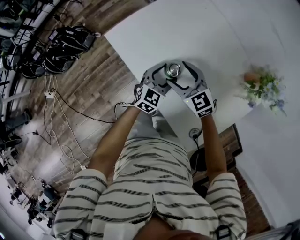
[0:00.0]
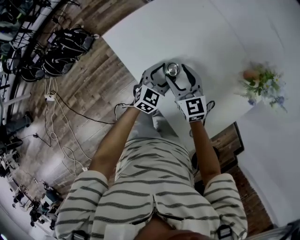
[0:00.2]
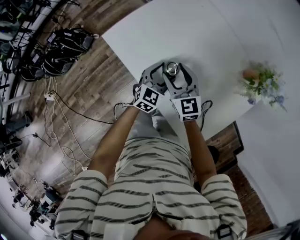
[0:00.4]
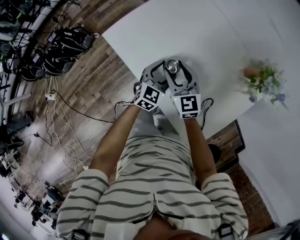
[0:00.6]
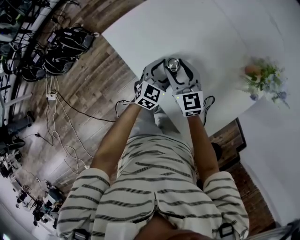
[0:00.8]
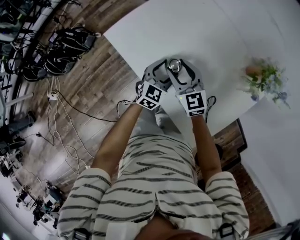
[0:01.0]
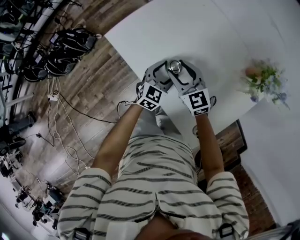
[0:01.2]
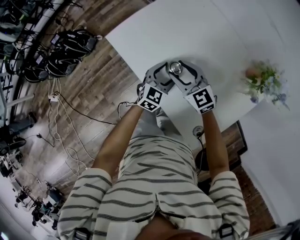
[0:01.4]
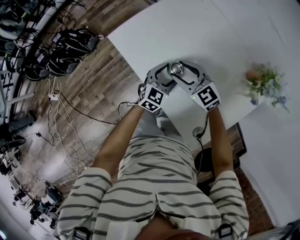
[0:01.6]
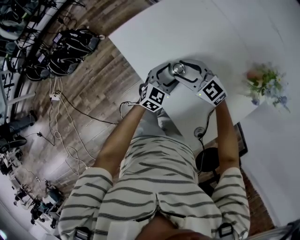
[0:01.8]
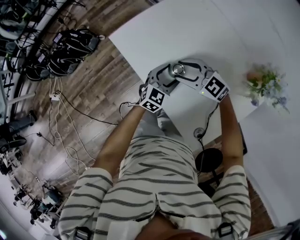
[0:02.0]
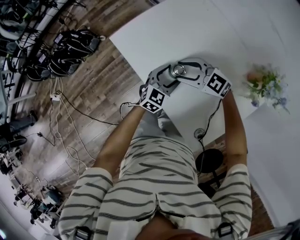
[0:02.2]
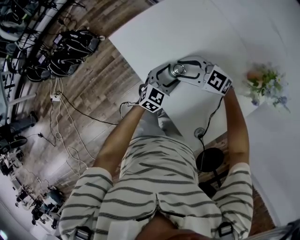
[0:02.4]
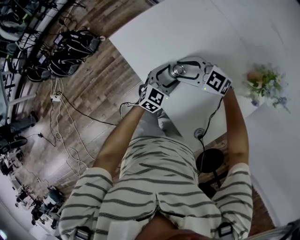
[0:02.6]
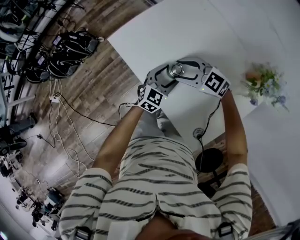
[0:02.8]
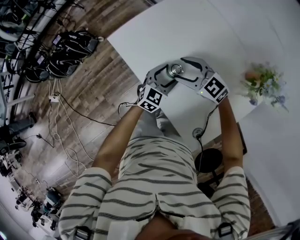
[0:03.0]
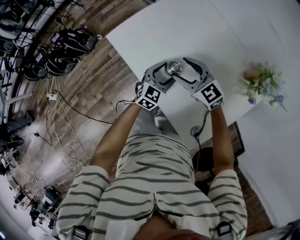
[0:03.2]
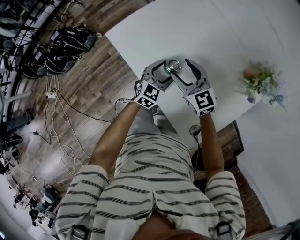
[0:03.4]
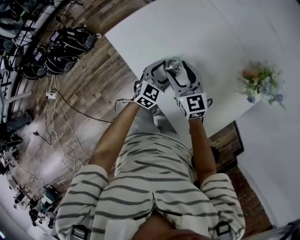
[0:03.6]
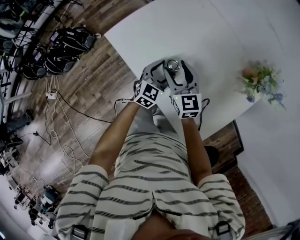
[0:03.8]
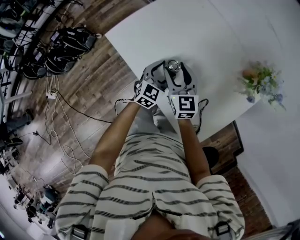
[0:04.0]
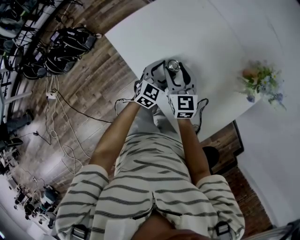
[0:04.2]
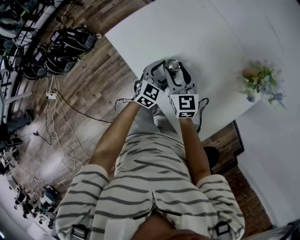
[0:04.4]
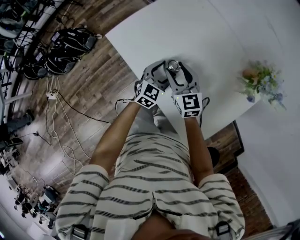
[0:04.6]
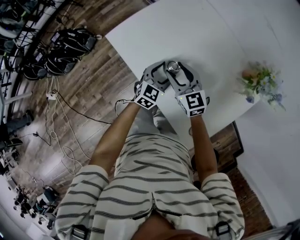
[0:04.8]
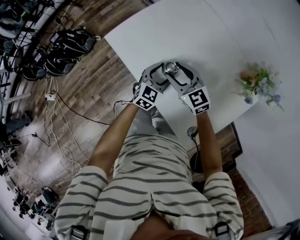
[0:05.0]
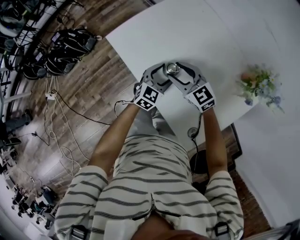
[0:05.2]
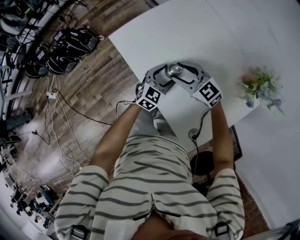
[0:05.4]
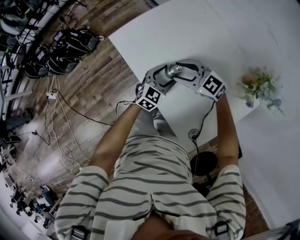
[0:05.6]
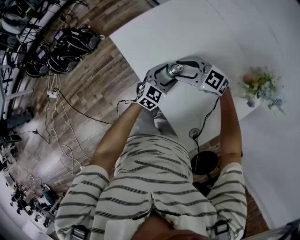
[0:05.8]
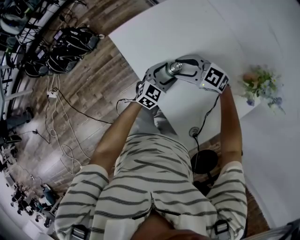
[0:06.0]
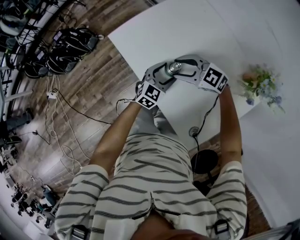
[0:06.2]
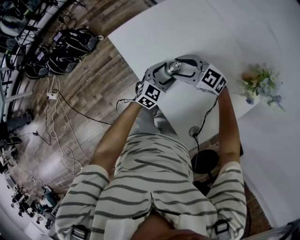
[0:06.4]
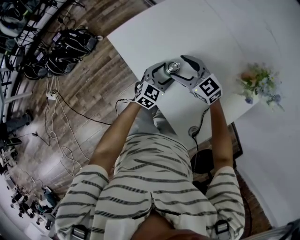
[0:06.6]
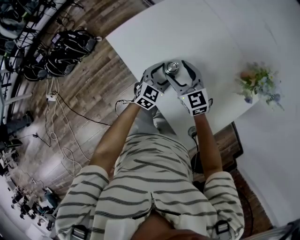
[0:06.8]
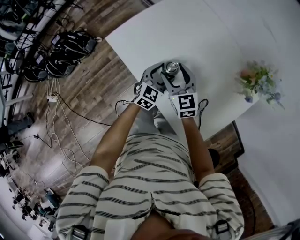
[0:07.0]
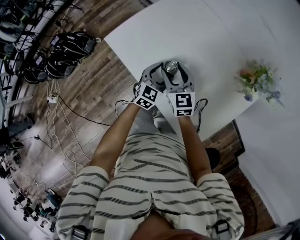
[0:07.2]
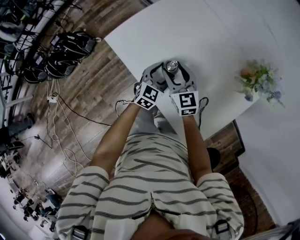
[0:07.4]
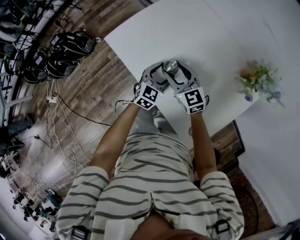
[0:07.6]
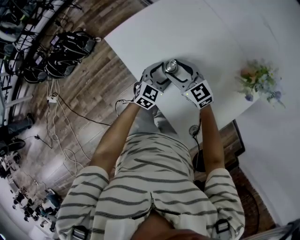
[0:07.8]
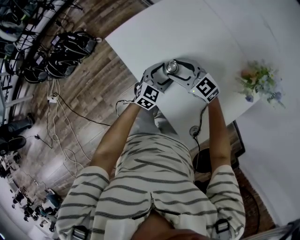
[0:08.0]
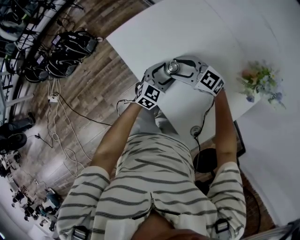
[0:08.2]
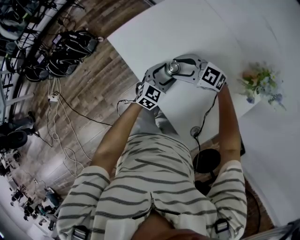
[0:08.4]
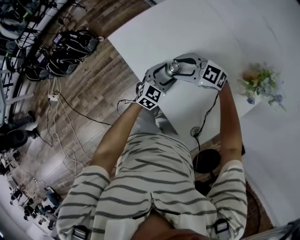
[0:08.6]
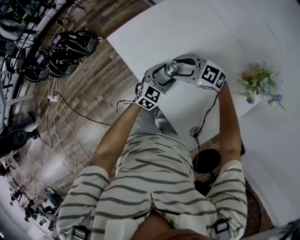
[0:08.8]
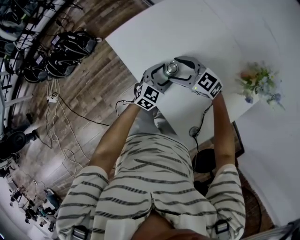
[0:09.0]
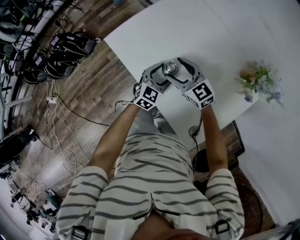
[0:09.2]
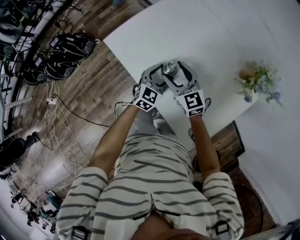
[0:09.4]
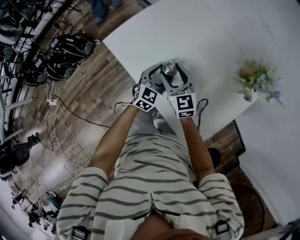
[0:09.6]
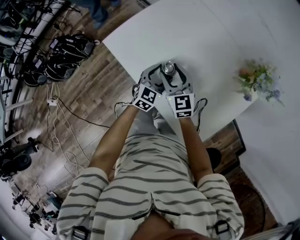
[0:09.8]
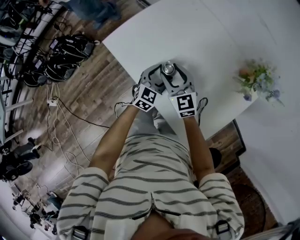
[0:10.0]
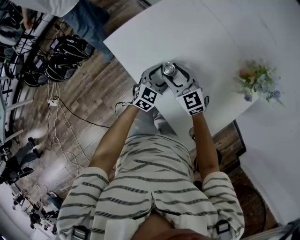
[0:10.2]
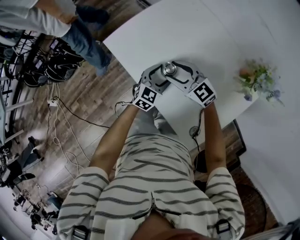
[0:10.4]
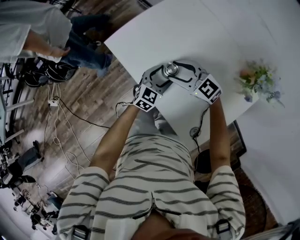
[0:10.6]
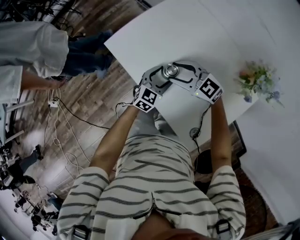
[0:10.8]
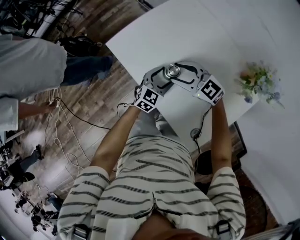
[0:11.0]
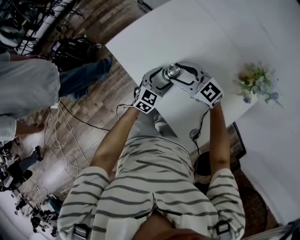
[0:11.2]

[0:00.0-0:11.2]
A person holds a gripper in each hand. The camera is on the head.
0:03.2 to 0:04.8: The right gripper changes its angle by approximately 20 degrees.
0:04.8 to 0:06.4: The right gripper changes its angle by about 40 degrees.
0:08.0 to 0:09.6: The right gripper turns by approximately 40 degrees.
0:09.6 to 0:11.2: The right gripper swivels about 40 degrees.

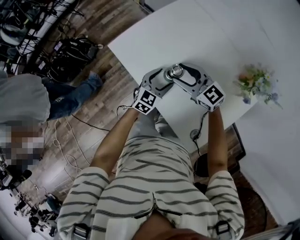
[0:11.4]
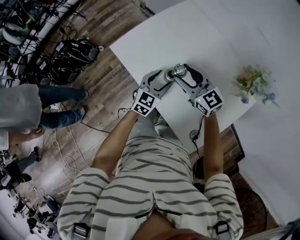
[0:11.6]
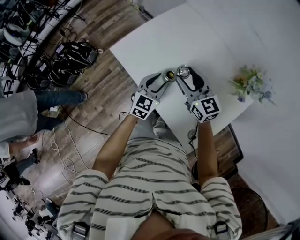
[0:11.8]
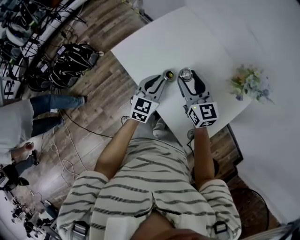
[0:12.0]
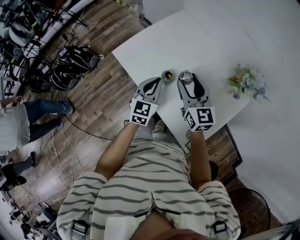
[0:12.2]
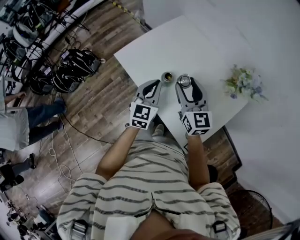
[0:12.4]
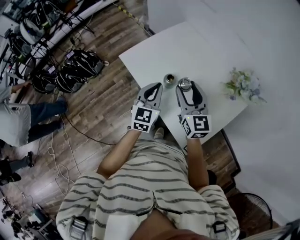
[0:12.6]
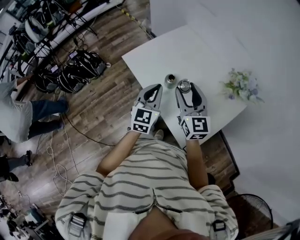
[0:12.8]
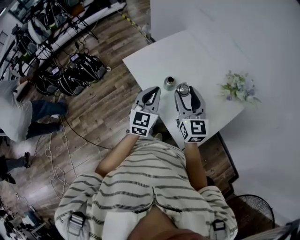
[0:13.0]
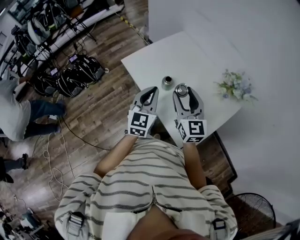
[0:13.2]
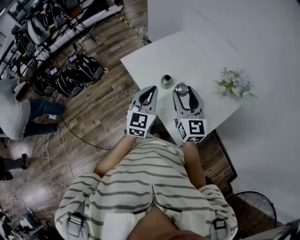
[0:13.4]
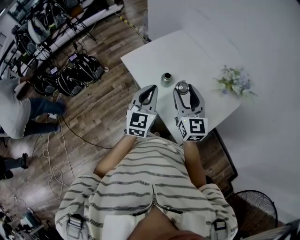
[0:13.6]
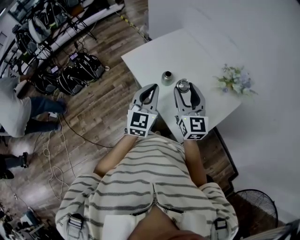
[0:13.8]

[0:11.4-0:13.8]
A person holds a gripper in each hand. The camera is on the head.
0:11.4 to 0:12.6: Both grippers move upward and backward, some 20 cm. The right gripper changes its angle by roughly 40 degrees. Meanwhile the left gripper turns by some 20 degrees, and closes its fingers.
0:12.6 to 0:13.8: The right gripper goes some 10 cm backward; the left gripper travels backward and upward by roughly 10 cm.

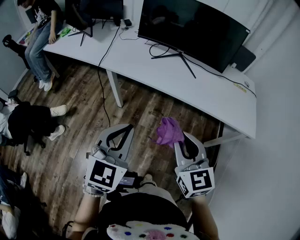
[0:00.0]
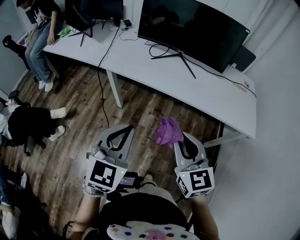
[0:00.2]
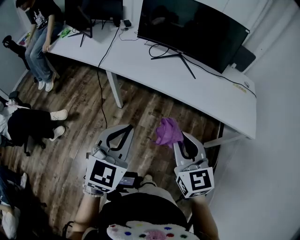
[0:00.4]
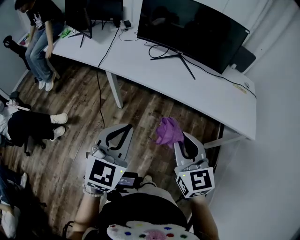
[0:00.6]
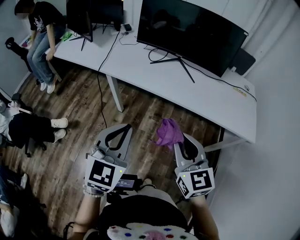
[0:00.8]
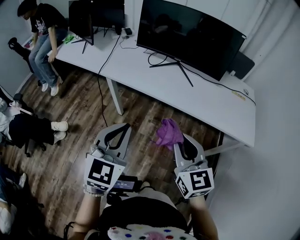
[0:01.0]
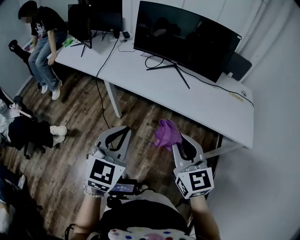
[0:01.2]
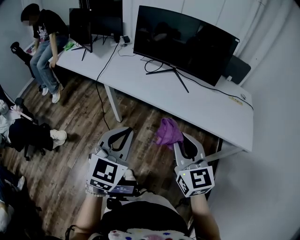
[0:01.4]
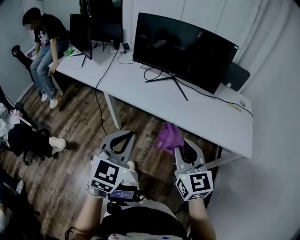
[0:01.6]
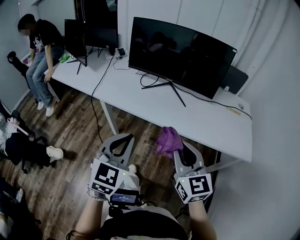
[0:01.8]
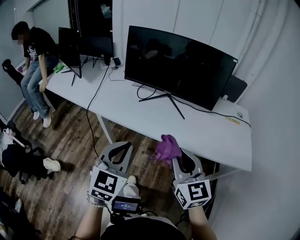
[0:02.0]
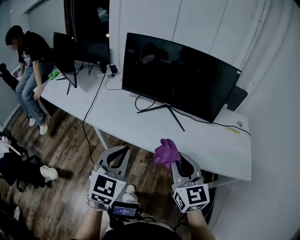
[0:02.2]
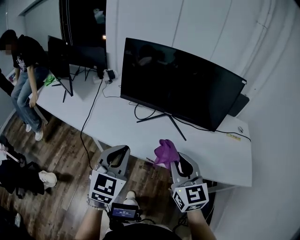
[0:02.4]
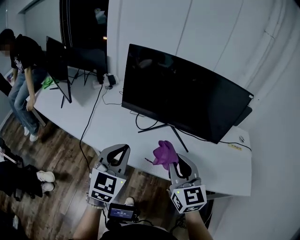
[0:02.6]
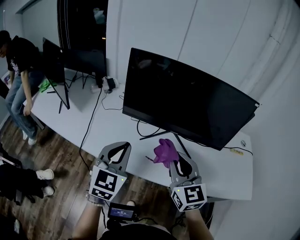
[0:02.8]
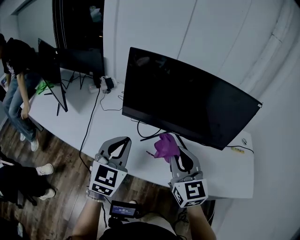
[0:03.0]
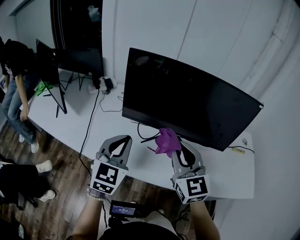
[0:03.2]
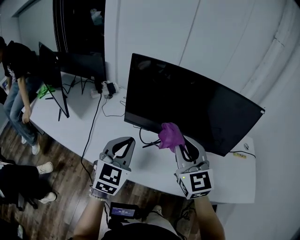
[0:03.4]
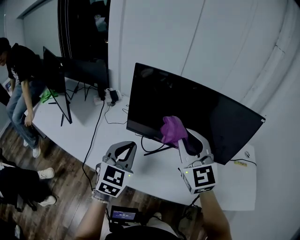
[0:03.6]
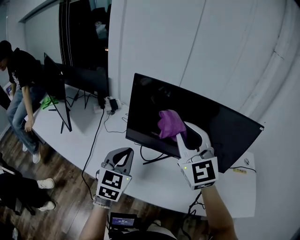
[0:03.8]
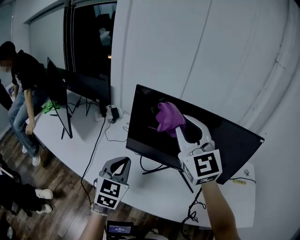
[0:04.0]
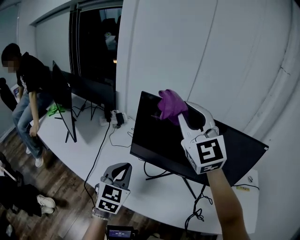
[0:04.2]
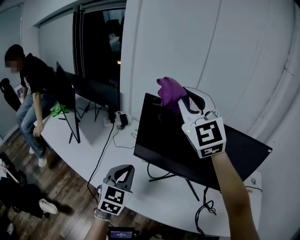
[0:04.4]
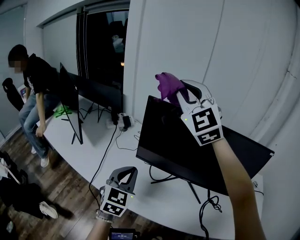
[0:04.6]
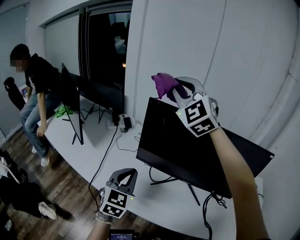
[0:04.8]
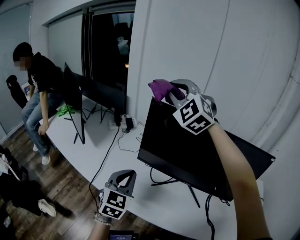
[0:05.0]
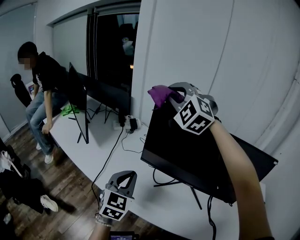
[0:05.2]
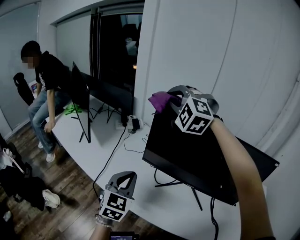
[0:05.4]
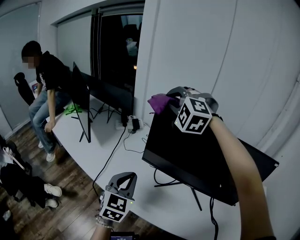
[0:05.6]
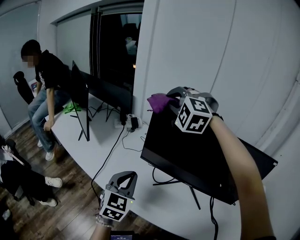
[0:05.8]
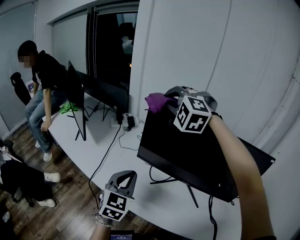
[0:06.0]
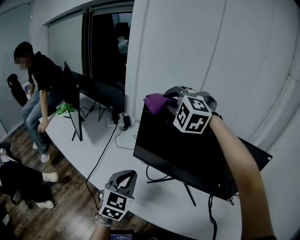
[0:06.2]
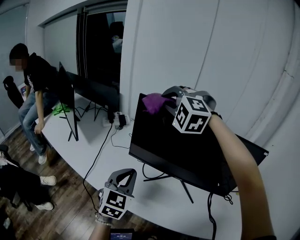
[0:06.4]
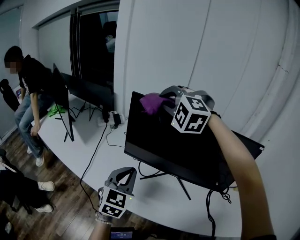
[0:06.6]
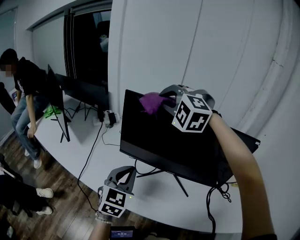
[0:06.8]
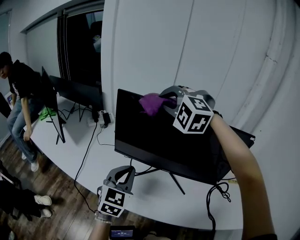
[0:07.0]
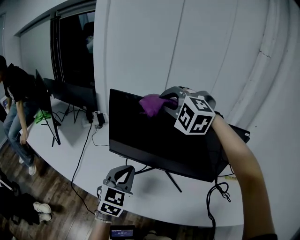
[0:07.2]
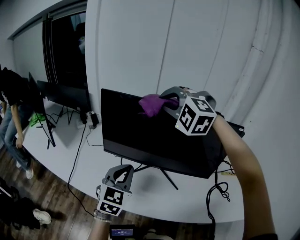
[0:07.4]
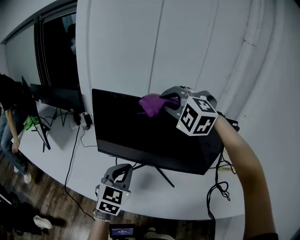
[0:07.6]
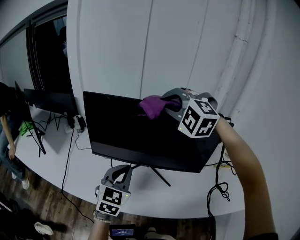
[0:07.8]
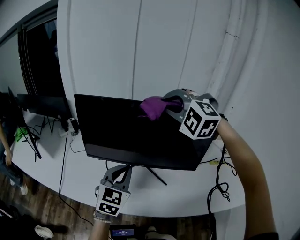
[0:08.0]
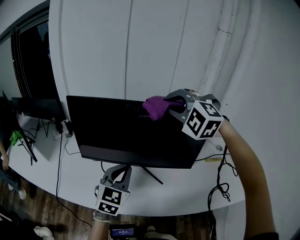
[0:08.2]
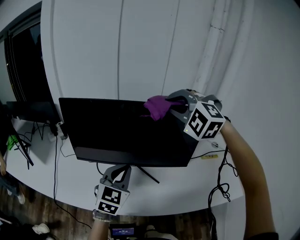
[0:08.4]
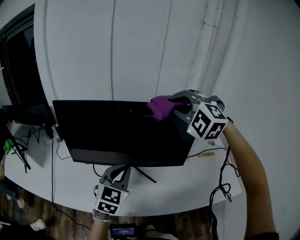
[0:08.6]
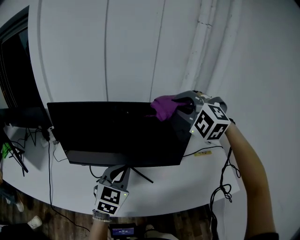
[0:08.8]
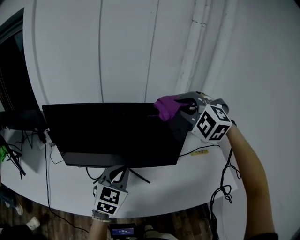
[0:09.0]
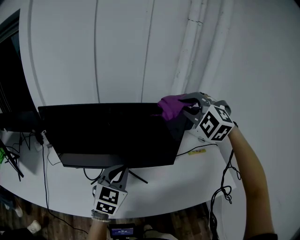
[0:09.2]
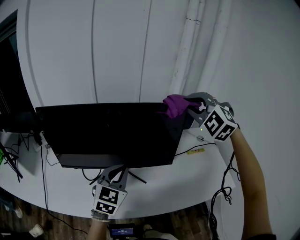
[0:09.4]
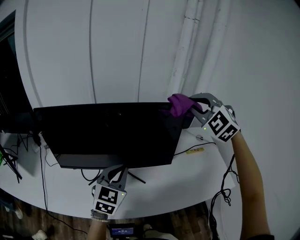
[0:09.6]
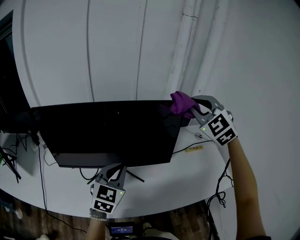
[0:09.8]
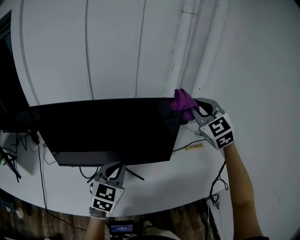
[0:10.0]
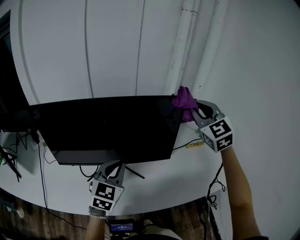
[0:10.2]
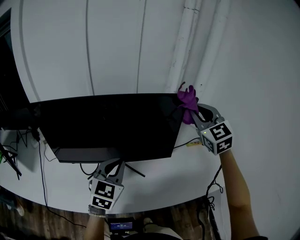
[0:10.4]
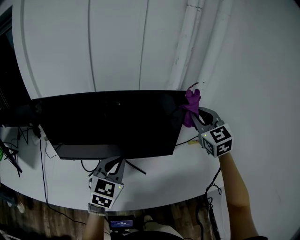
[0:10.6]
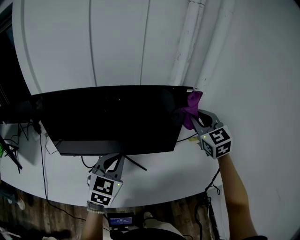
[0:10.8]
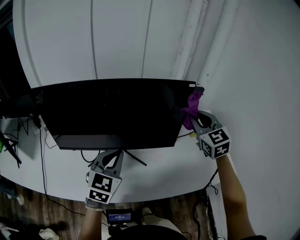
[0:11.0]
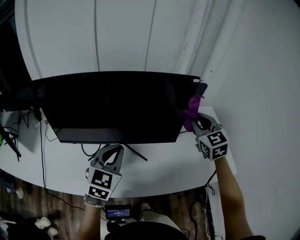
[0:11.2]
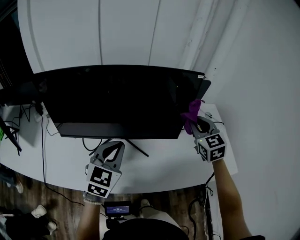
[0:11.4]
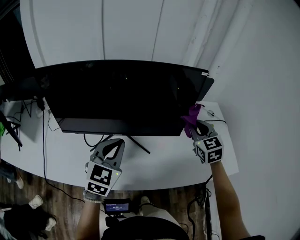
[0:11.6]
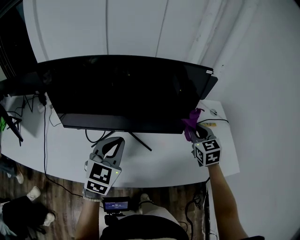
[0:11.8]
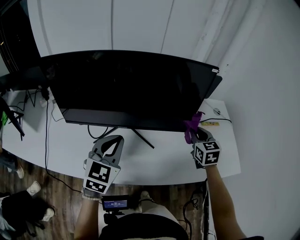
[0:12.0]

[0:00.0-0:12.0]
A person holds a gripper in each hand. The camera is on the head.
0:00.0 to 0:01.6: Both grippers travel together to the right, approximately 5 cm.
0:01.6 to 0:03.0: The two grippers go some 40 cm forward.
0:03.0 to 0:04.4: The right gripper heads upward and forward, covering about 35 cm, and turns by some 40 degrees; the left gripper shifts some 10 cm forward.
0:04.4 to 0:06.0: The right gripper shifts some 10 cm downward and forward, and tilts its fingers approximately 40 degrees downward.
0:06.0 to 0:07.6: The left gripper goes roughly 15 cm to the right, while the right gripper shifts about 25 cm to the right and backward.
0:07.6 to 0:09.0: The left gripper goes approximately 15 cm to the right; the right gripper shifts roughly 25 cm to the right, and changes its angle by roughly 20 degrees.
0:09.0 to 0:10.4: The right gripper is displaced to the right by some 10 cm, and rotates around the line of its fingers by some 50 degrees, clockwise from behind.
0:10.4 to 0:12.0: The right gripper goes some 25 cm downward, and swivels roughly 30 degrees. The left gripper ends up some 5 cm from where it was.
